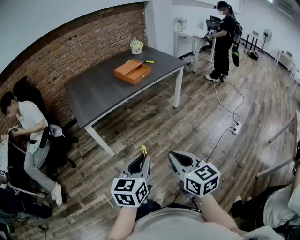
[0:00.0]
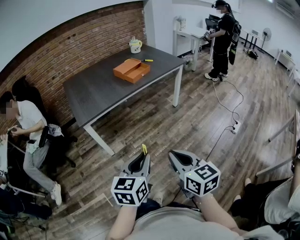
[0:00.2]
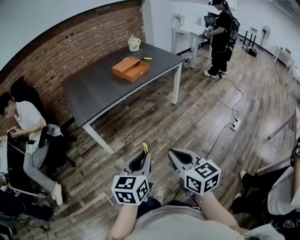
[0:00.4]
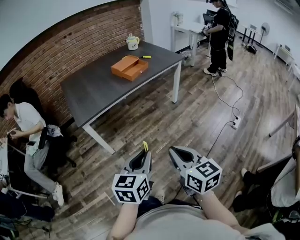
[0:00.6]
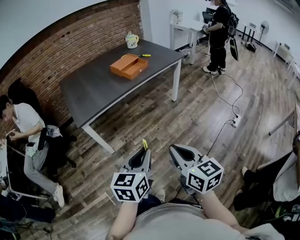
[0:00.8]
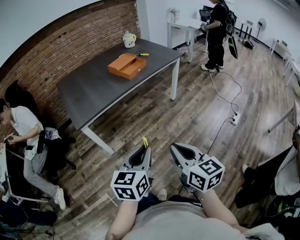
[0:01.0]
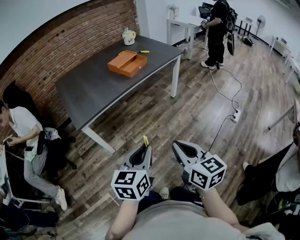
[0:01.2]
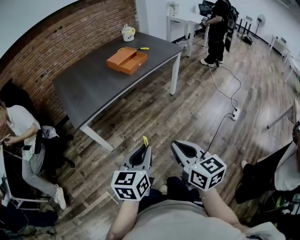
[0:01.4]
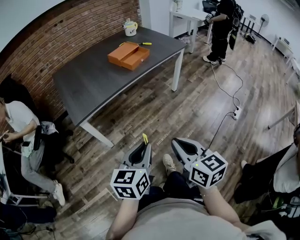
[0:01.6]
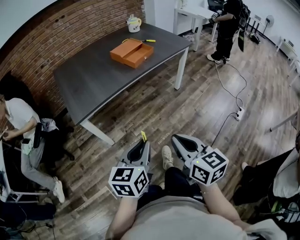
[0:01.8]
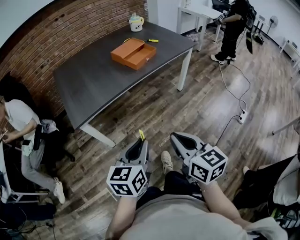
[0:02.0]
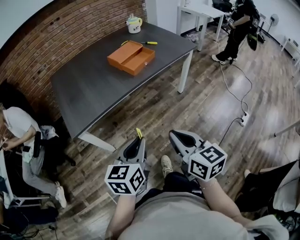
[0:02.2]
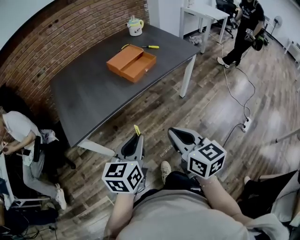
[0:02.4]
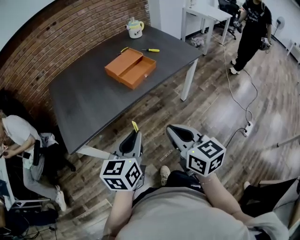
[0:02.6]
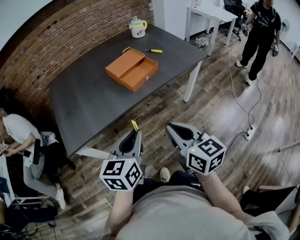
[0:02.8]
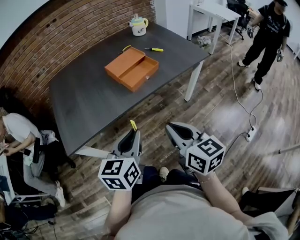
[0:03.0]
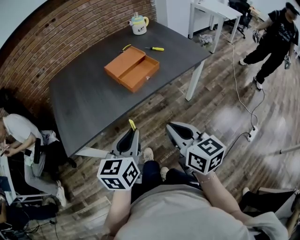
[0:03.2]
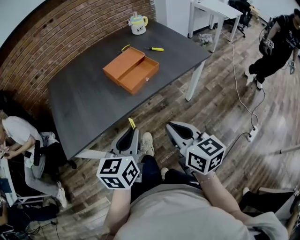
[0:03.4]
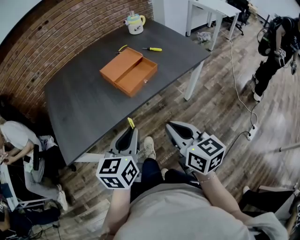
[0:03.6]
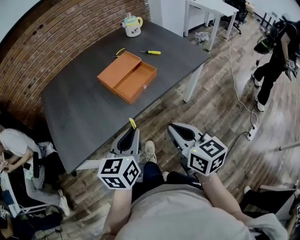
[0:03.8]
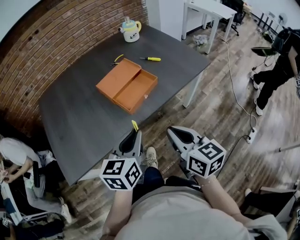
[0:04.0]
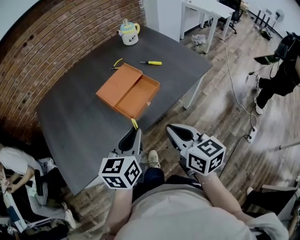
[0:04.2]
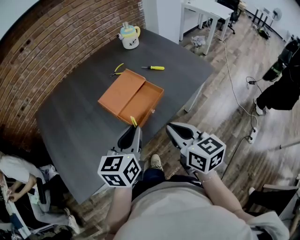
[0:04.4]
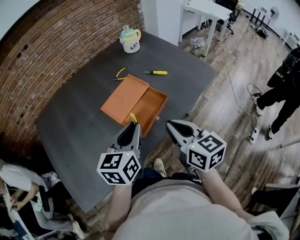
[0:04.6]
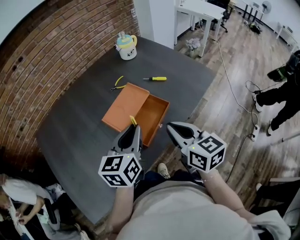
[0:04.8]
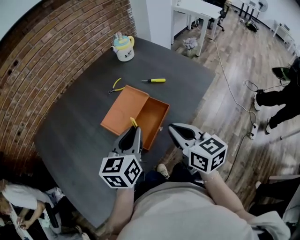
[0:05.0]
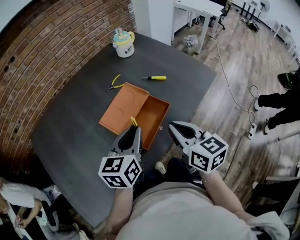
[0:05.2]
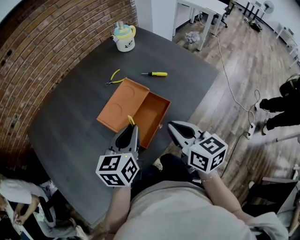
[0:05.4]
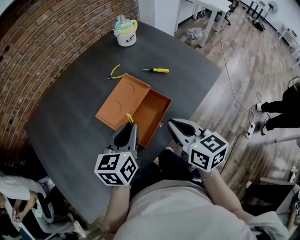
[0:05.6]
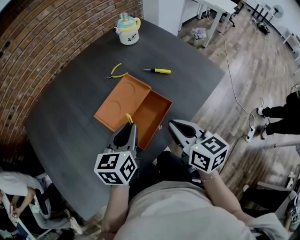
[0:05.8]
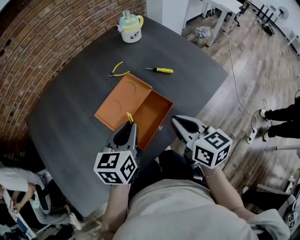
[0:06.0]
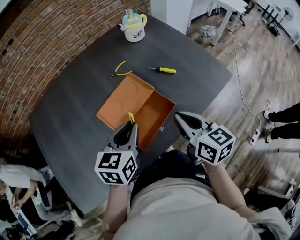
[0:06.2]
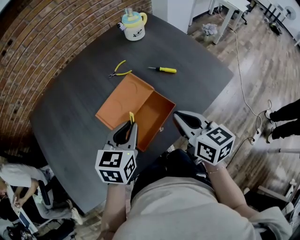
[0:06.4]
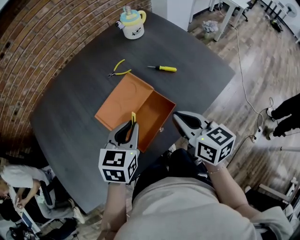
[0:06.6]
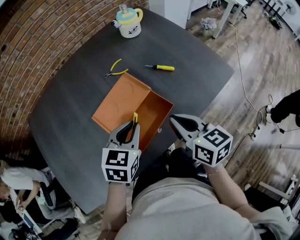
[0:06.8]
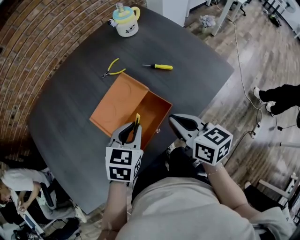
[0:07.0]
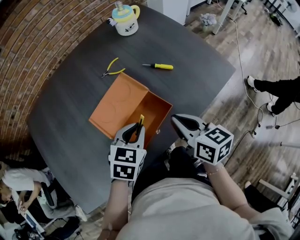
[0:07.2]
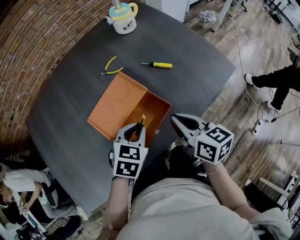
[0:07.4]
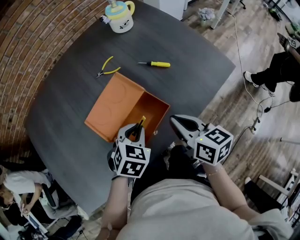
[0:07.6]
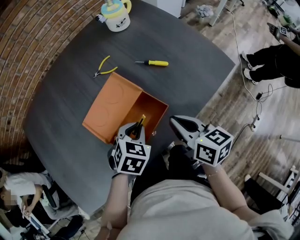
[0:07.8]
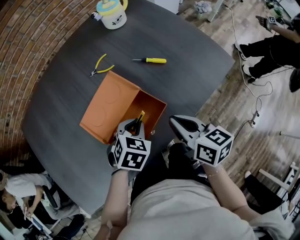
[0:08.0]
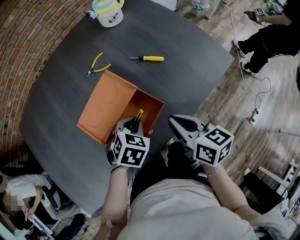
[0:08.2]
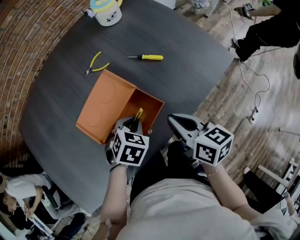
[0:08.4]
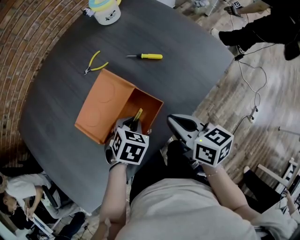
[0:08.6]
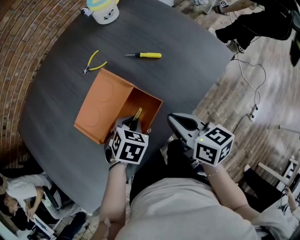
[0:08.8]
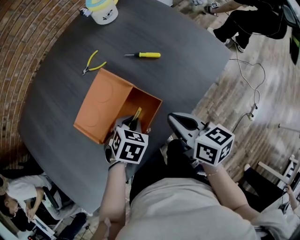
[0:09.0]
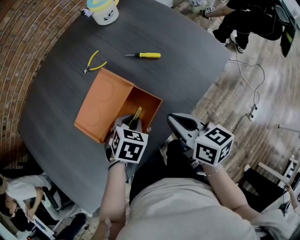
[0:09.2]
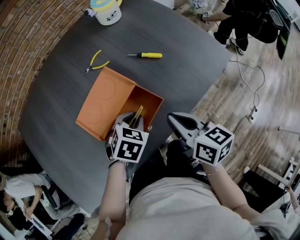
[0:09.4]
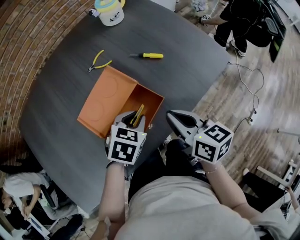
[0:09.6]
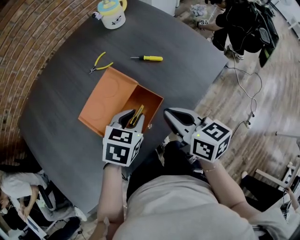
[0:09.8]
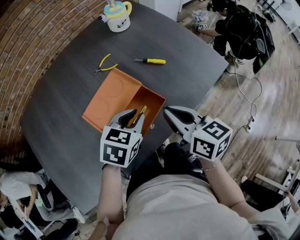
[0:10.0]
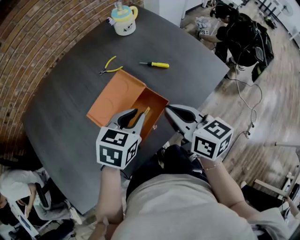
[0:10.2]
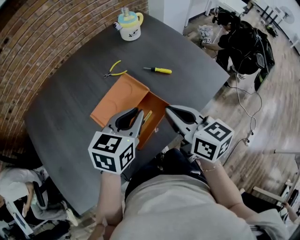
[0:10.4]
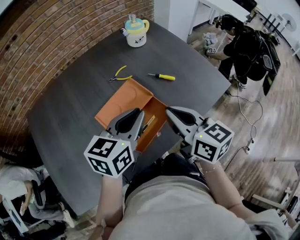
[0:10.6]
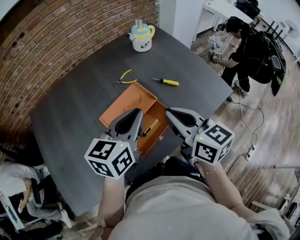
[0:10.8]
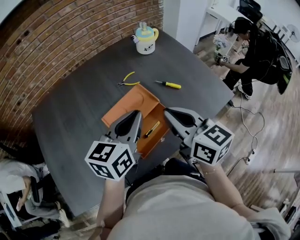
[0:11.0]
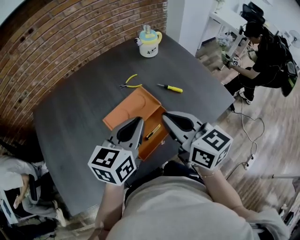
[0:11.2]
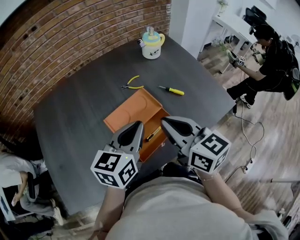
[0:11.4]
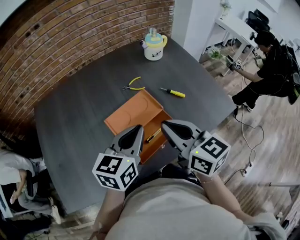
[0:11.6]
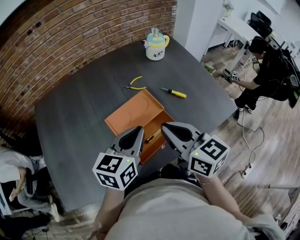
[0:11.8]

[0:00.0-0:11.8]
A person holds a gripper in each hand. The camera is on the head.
0:00.0 to 0:01.4: The grippers both shift forward by about 5 cm.
0:01.4 to 0:03.0: The two grippers go some 35 cm forward.
0:03.0 to 0:04.4: The grippers both shift forward by approximately 25 cm.
0:04.4 to 0:06.0: The two grippers go some 15 cm forward.
0:06.0 to 0:07.4: The right gripper moves approximately 5 cm. The left gripper heads downward and to the right, covering about 10 cm, and turns by approximately 30 degrees.
0:07.4 to 0:08.8: The left gripper travels downward by approximately 5 cm.
0:08.8 to 0:10.4: The left gripper heads upward, covering some 20 cm, and tilts its fingers some 40 degrees upward. The right gripper heads upward, covering roughly 10 cm.
0:10.4 to 0:11.8: Both grippers move to the left, approximately 5 cm.

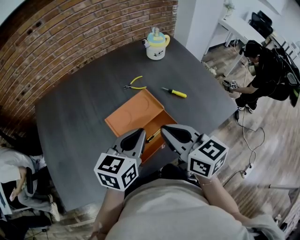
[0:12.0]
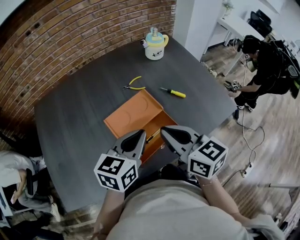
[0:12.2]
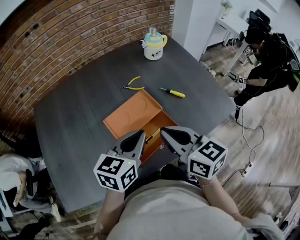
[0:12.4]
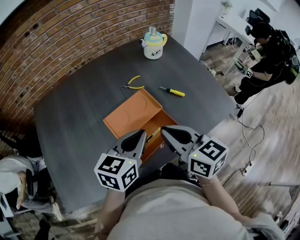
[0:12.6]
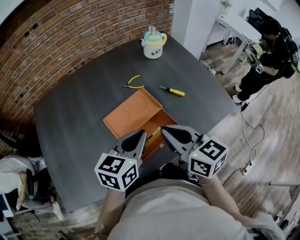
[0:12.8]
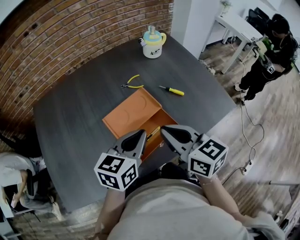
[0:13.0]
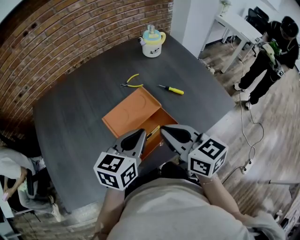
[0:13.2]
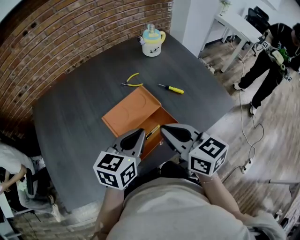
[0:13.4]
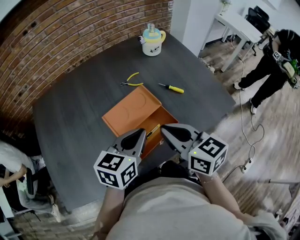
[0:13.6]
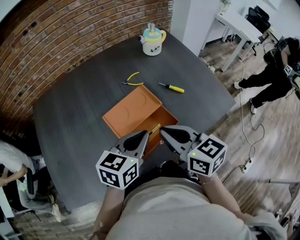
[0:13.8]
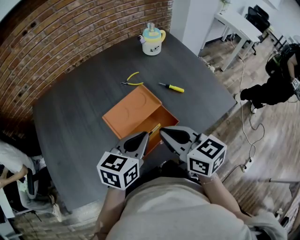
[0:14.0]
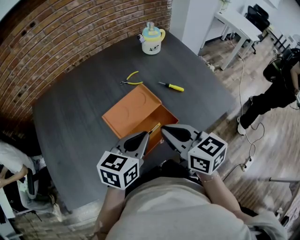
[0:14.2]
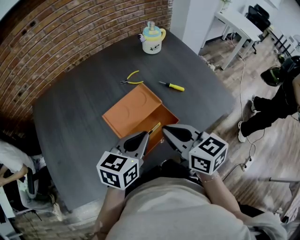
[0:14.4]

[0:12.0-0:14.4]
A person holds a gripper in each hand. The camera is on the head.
0:12.0 to 0:13.2: Both grippers stay put.
0:13.2 to 0:14.4: The grippers make only small movements.

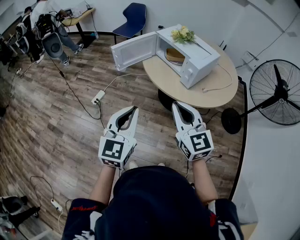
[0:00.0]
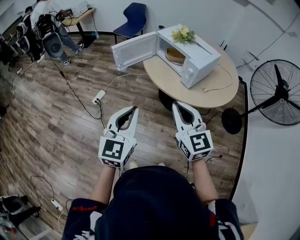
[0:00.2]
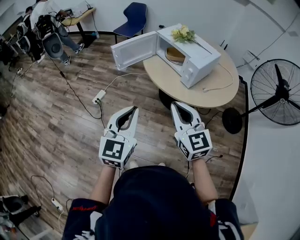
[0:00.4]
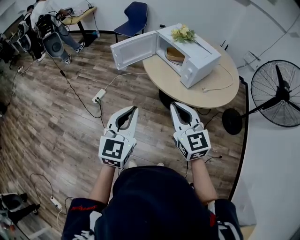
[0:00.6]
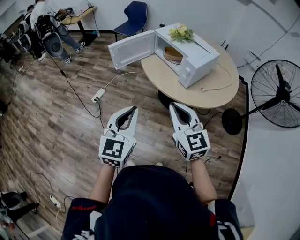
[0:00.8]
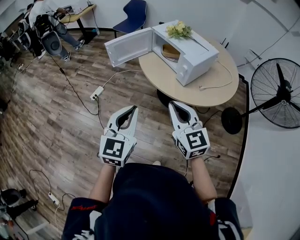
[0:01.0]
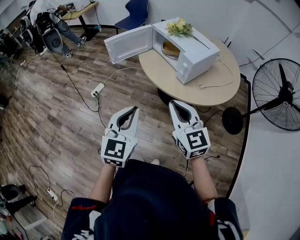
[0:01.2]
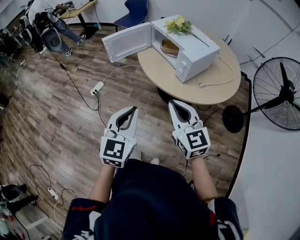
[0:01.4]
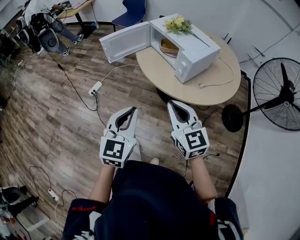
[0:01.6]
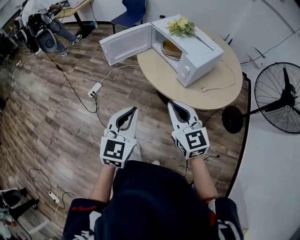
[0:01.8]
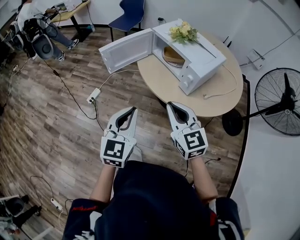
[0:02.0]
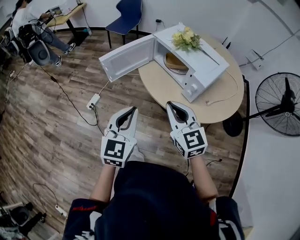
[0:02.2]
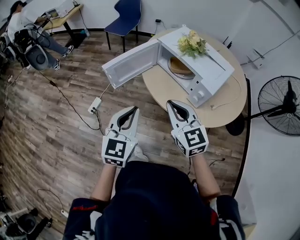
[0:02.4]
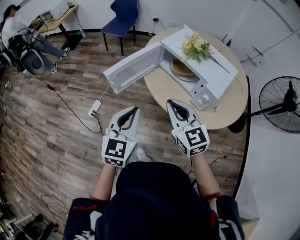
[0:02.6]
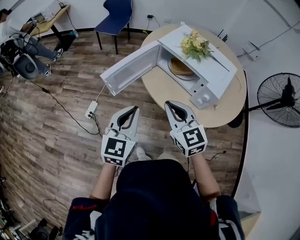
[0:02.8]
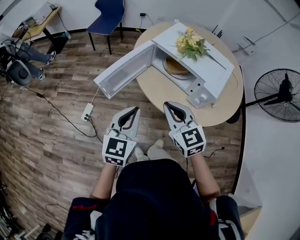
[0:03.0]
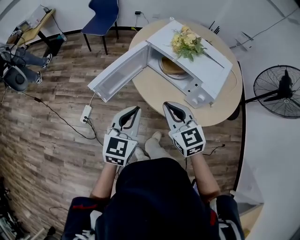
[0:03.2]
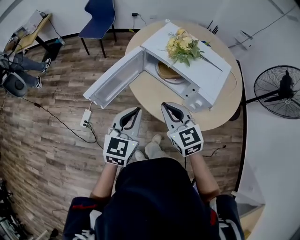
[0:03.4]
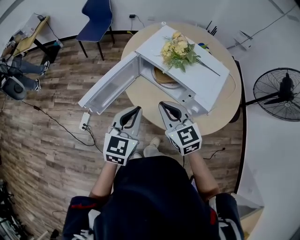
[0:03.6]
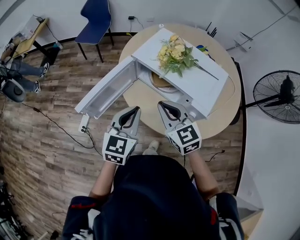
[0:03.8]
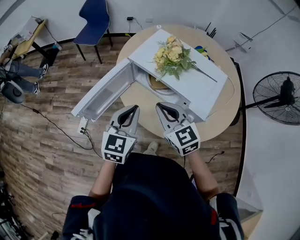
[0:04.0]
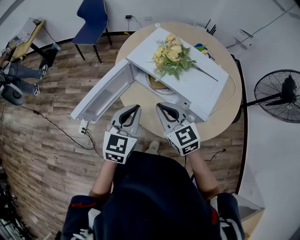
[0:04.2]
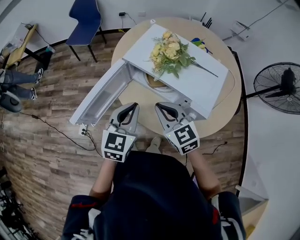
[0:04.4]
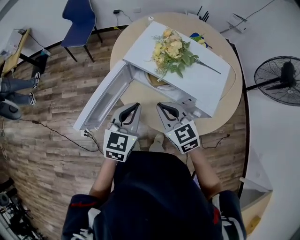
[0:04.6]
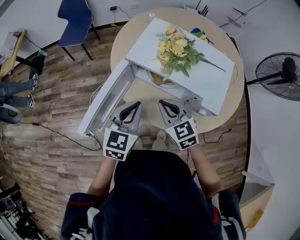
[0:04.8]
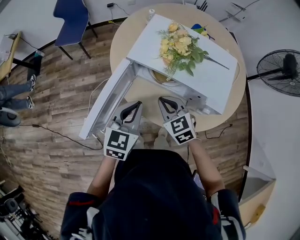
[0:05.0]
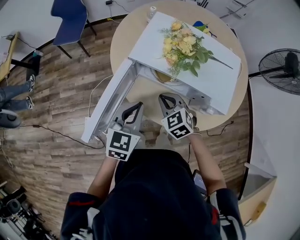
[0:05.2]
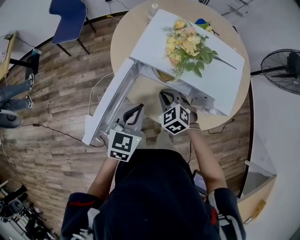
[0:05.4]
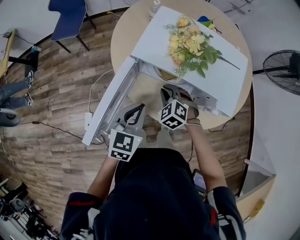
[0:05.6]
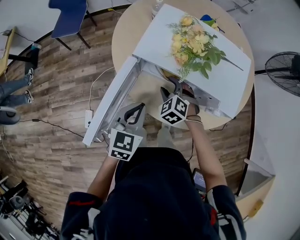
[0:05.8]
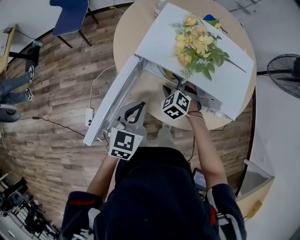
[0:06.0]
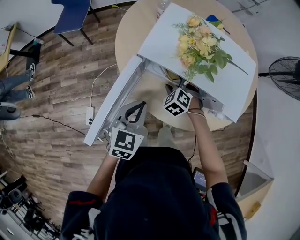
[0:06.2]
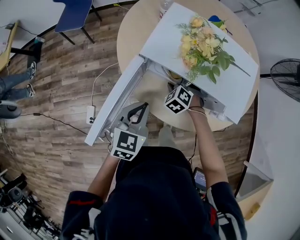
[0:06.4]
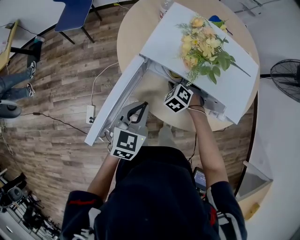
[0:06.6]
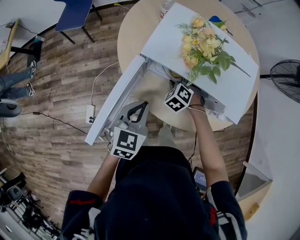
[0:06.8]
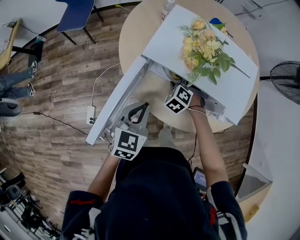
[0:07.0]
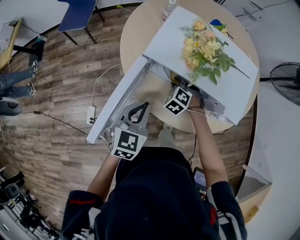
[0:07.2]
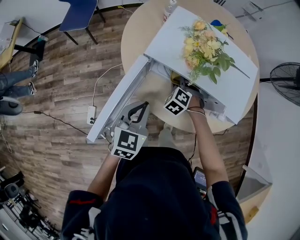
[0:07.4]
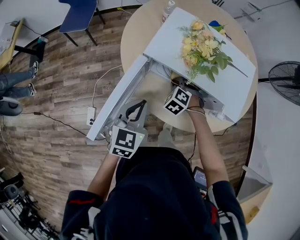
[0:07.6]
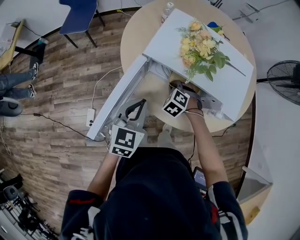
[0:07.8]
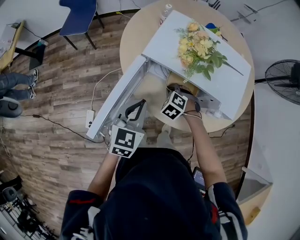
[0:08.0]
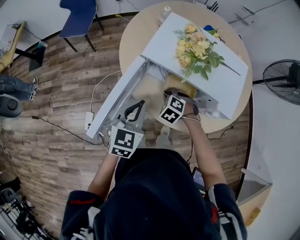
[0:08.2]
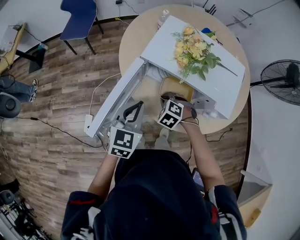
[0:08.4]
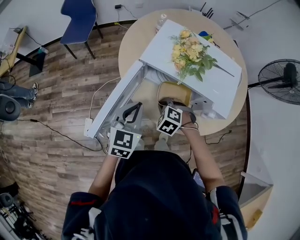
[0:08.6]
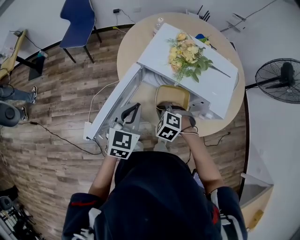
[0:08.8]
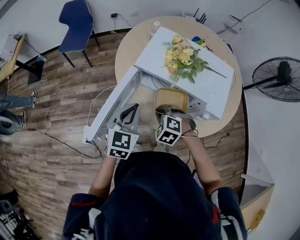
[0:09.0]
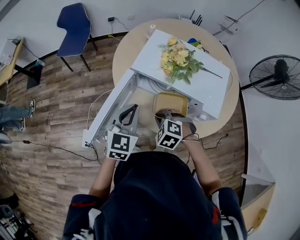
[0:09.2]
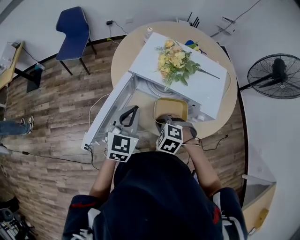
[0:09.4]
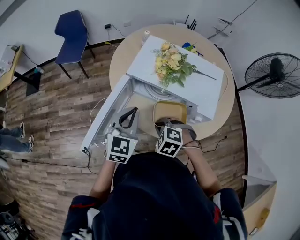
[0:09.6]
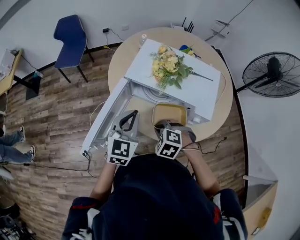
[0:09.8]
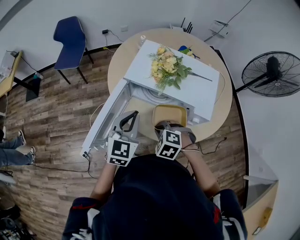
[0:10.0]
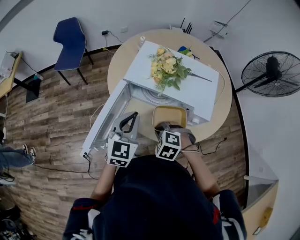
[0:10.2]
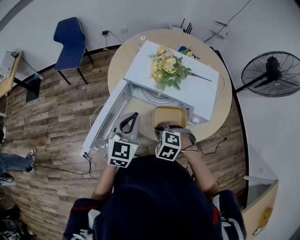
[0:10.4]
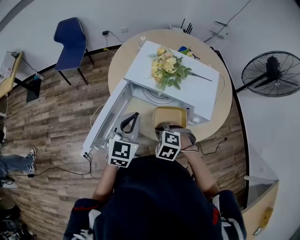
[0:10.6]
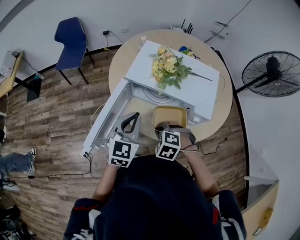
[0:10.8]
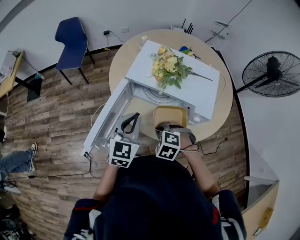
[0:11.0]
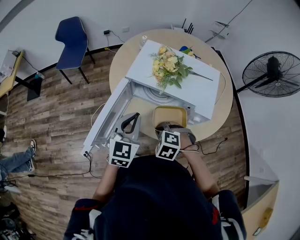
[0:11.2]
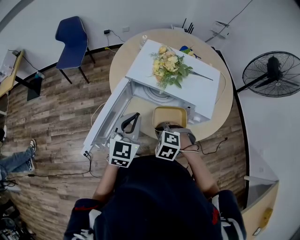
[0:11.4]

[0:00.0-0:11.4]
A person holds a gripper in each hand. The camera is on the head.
0:00.0 to 0:01.4: The grippers both shift to the right by about 10 cm.
0:01.4 to 0:02.8: Both grippers move forward and to the left, some 35 cm.
0:02.8 to 0:04.2: The grippers both shift forward and to the right by roughly 20 cm.
0:04.2 to 0:05.6: The right gripper goes about 20 cm downward and forward, and angles its fingers downward, by some 30 degrees, while the left gripper moves downward, to the left and forward, roughly 10 cm.
0:05.6 to 0:07.2: The right gripper moves forward and downward, approximately 5 cm, and opens, then closes again.
0:07.2 to 0:08.6: The right gripper heads backward and upward, covering some 10 cm.
0:08.6 to 0:10.0: The right gripper goes about 10 cm backward and upward. Meanwhile the left gripper is displaced upward by approximately 5 cm.
0:10.0 to 0:11.4: The grippers make only small movements.
